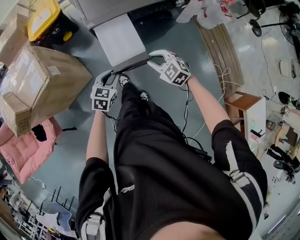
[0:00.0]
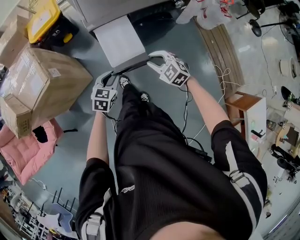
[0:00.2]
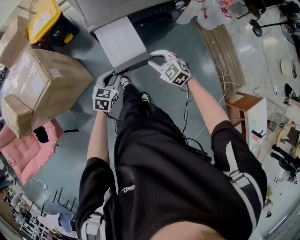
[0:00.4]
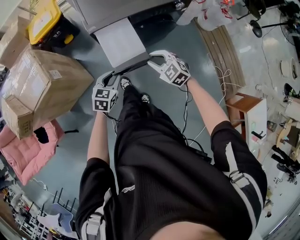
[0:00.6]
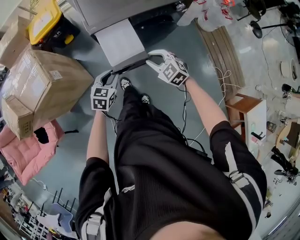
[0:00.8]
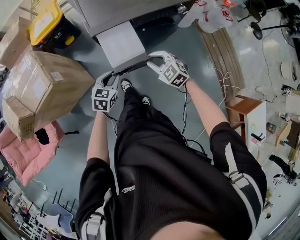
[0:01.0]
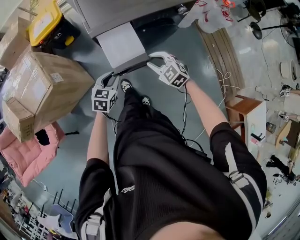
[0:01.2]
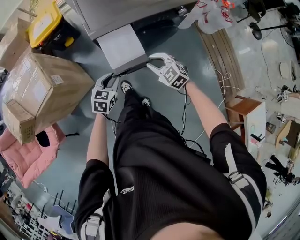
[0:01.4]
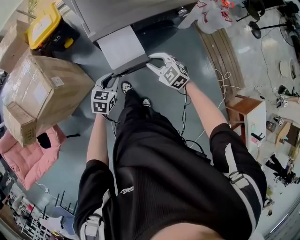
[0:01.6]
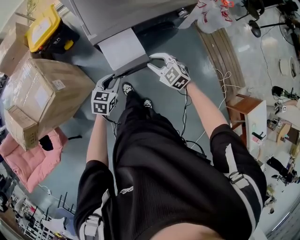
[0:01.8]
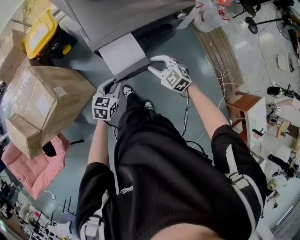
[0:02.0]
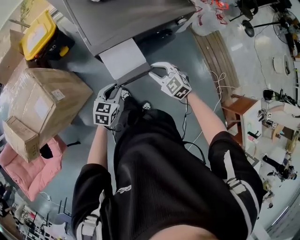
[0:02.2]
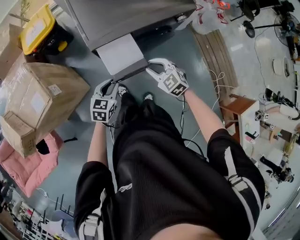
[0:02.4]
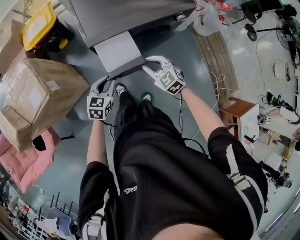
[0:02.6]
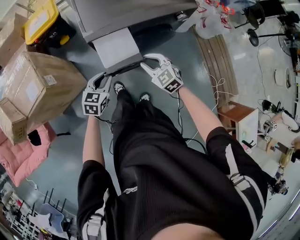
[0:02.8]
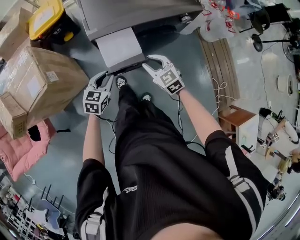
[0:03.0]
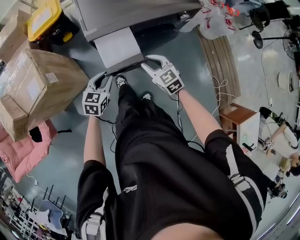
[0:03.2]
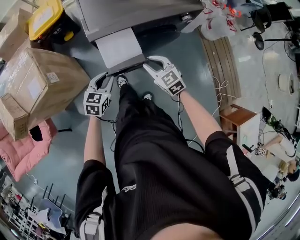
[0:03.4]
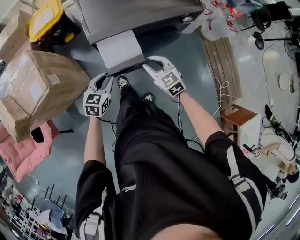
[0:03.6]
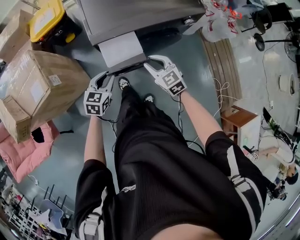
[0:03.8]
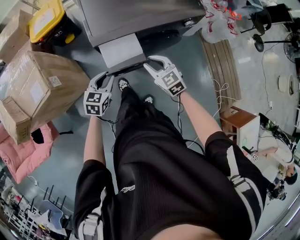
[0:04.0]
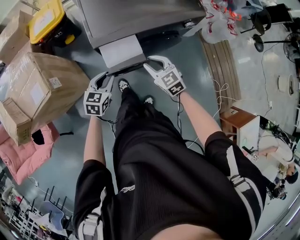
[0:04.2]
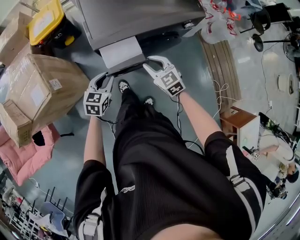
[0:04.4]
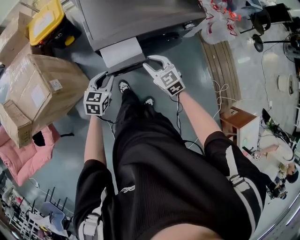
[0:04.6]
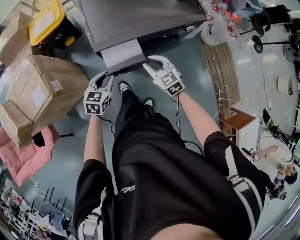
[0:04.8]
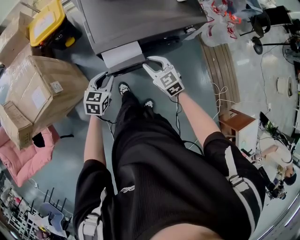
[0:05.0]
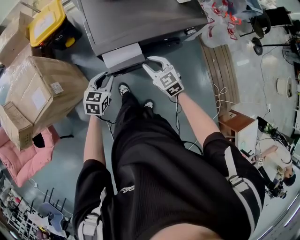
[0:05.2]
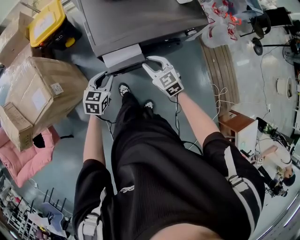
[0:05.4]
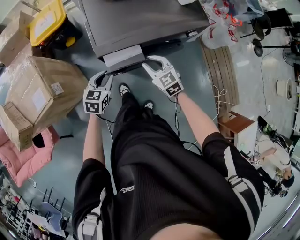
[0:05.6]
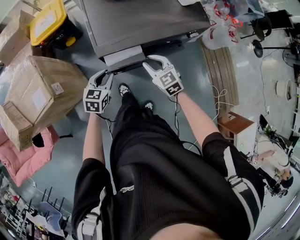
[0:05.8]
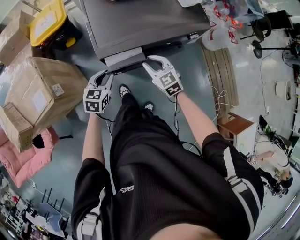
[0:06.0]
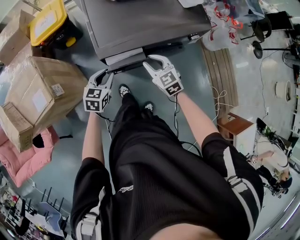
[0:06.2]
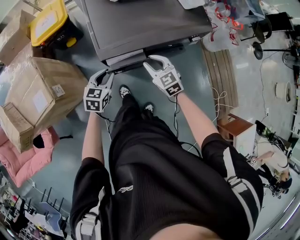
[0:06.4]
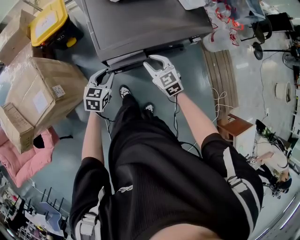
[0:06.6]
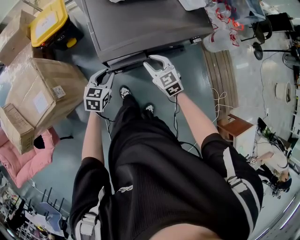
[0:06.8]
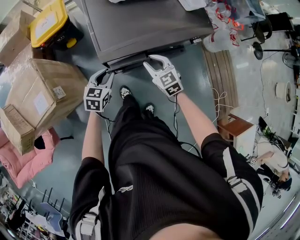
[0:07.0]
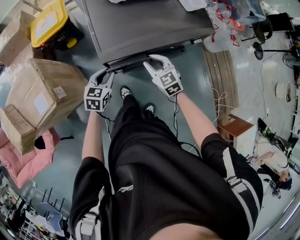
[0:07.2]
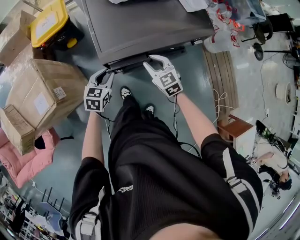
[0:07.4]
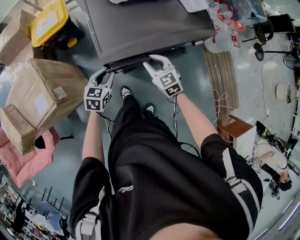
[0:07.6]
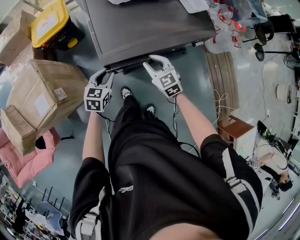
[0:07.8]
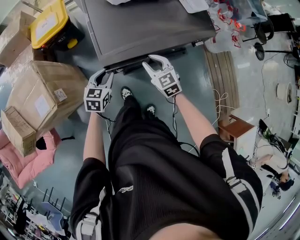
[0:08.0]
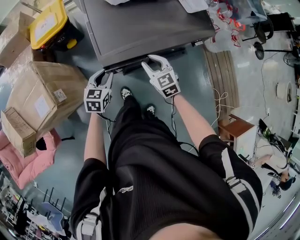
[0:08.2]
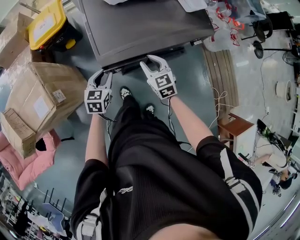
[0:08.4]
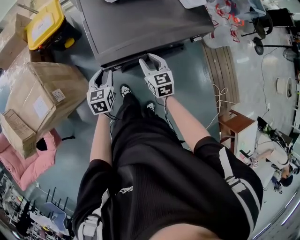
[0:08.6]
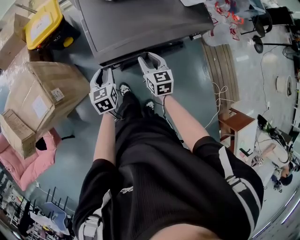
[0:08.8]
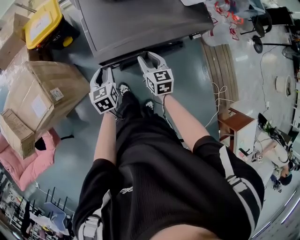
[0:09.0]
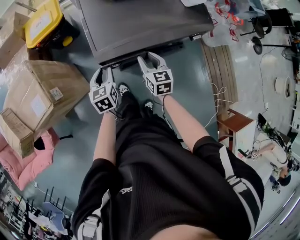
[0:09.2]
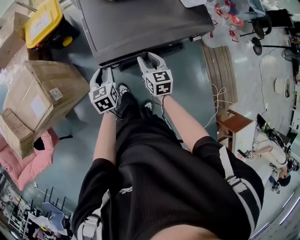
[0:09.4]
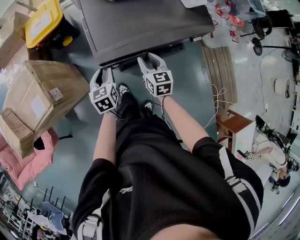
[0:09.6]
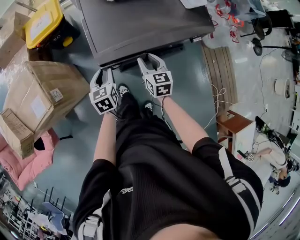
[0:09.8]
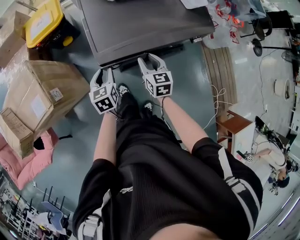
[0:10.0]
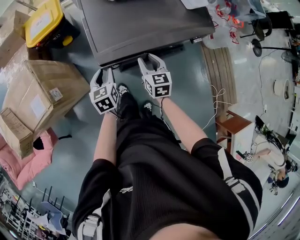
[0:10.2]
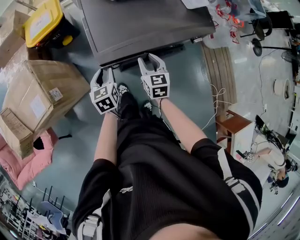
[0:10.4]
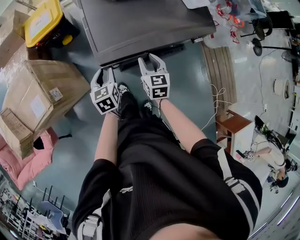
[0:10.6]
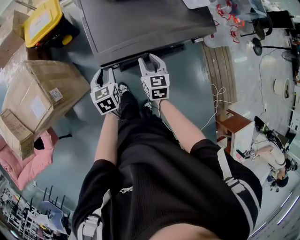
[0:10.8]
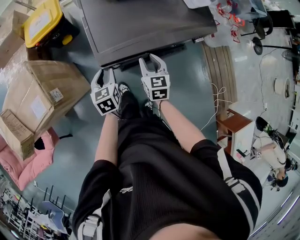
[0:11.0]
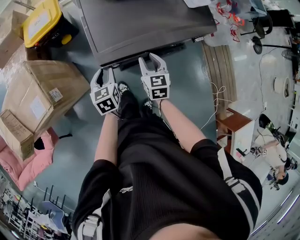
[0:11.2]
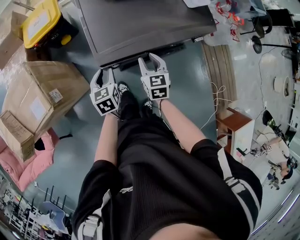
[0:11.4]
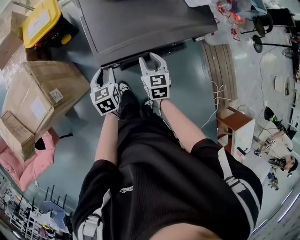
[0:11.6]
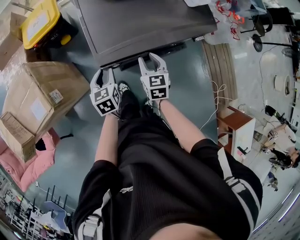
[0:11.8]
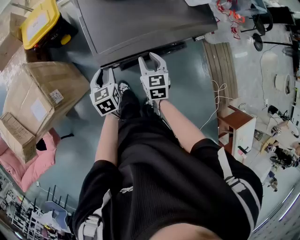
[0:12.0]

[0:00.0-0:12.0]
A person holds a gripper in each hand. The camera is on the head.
0:00.0 to 0:01.6: Both grippers move forward, about 5 cm.
0:01.6 to 0:03.0: The grippers make only small movements.
0:03.0 to 0:04.4: The grippers move only a little.
0:04.4 to 0:06.0: Both grippers move forward, about 5 cm.
0:06.0 to 0:07.6: The grippers make only small movements.
0:07.6 to 0:09.0: The left gripper swivels roughly 30 degrees. Meanwhile the right gripper turns by about 30 degrees.
0:09.0 to 0:12.0: The grippers move only a little.

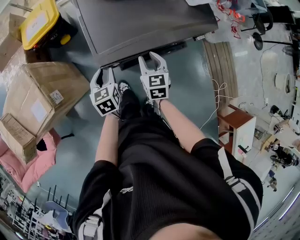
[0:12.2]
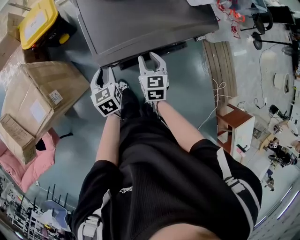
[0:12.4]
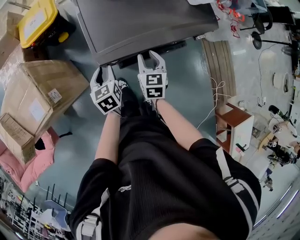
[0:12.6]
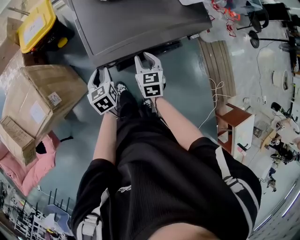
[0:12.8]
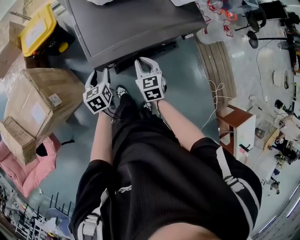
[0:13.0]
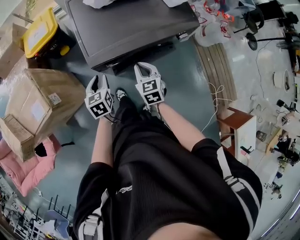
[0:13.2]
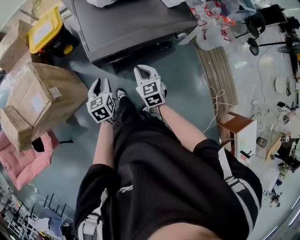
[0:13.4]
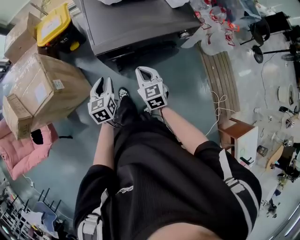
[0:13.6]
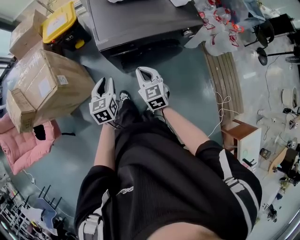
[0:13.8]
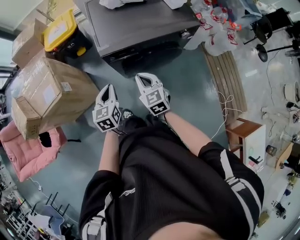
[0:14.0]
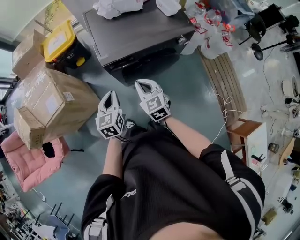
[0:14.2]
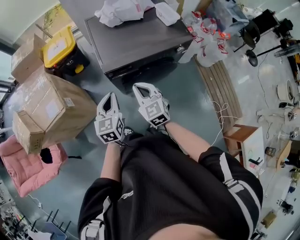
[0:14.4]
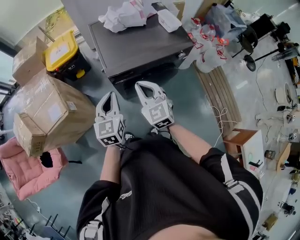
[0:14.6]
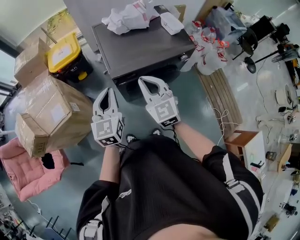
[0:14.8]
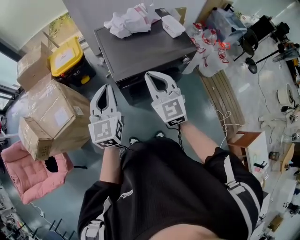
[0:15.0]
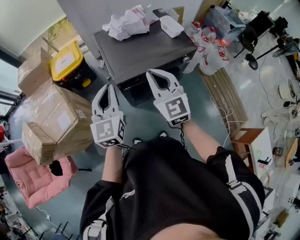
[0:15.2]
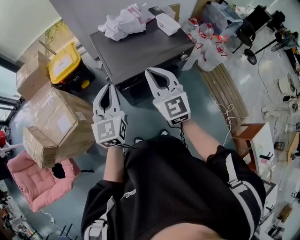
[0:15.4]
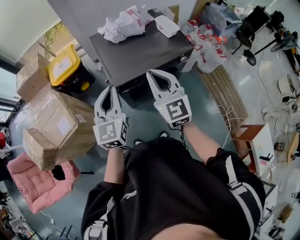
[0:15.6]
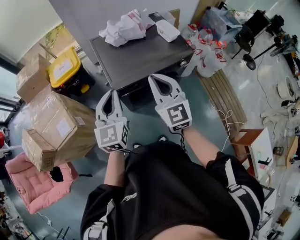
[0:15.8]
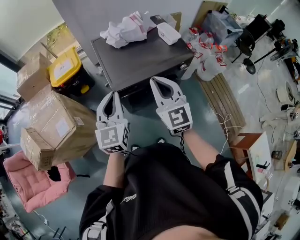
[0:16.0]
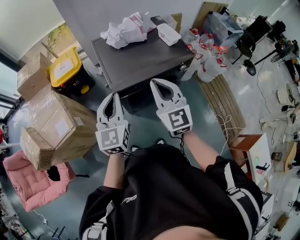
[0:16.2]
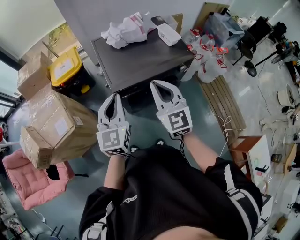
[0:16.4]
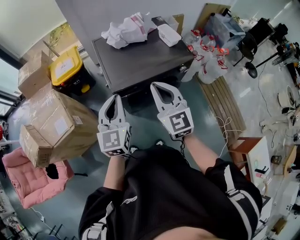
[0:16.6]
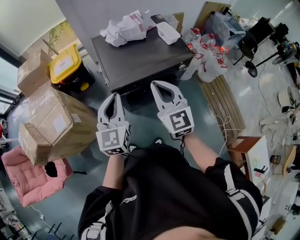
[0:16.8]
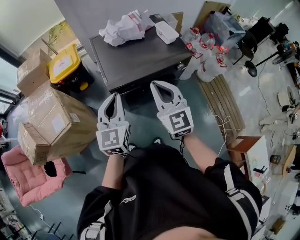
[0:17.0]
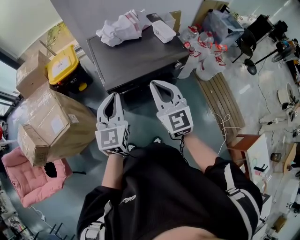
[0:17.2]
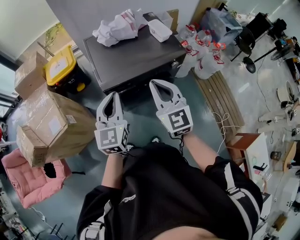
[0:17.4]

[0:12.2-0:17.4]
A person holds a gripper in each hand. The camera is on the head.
0:12.2 to 0:14.0: Both grippers travel together backward and upward, about 20 cm. The right gripper changes its angle by roughly 20 degrees, and closes its fingers. Meanwhile the left gripper closes its fingers.
0:14.0 to 0:15.6: The grippers both shift upward by about 25 cm. The right gripper rotates about 30 degrees; the left gripper rotates about 30 degrees.
0:15.6 to 0:17.4: Both grippers move to the right, about 5 cm.

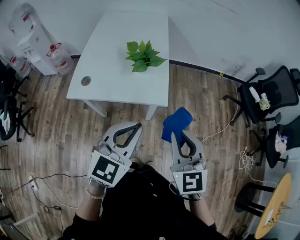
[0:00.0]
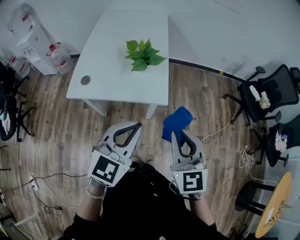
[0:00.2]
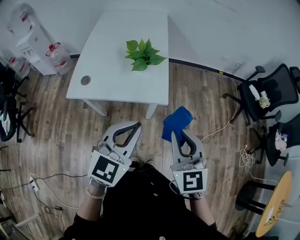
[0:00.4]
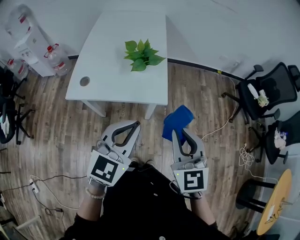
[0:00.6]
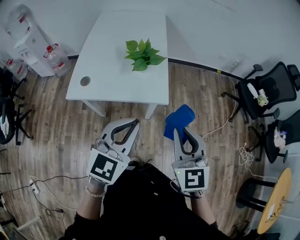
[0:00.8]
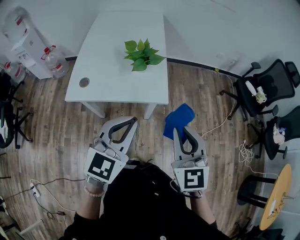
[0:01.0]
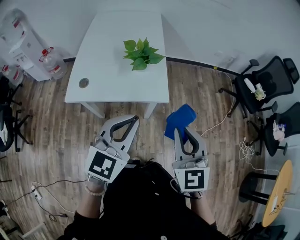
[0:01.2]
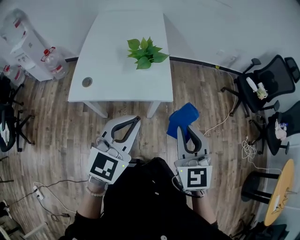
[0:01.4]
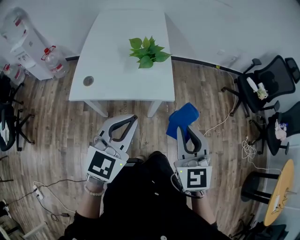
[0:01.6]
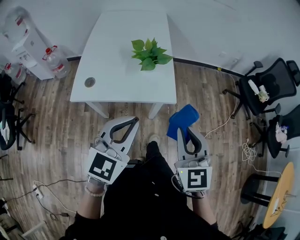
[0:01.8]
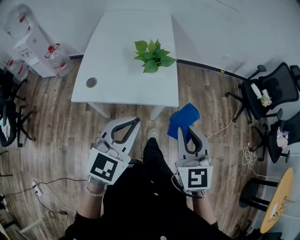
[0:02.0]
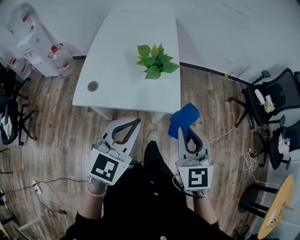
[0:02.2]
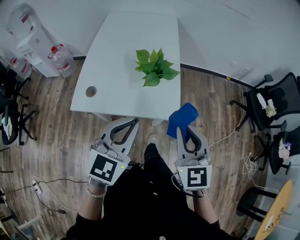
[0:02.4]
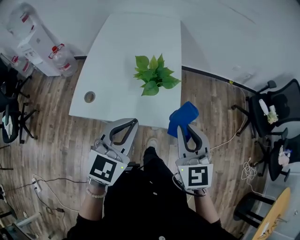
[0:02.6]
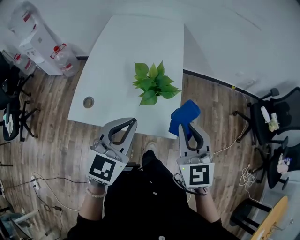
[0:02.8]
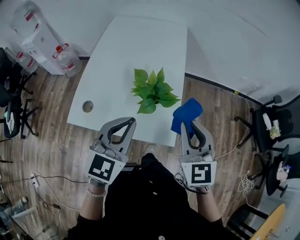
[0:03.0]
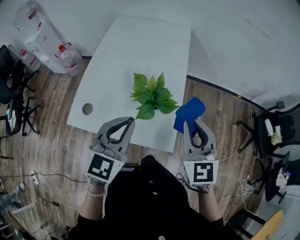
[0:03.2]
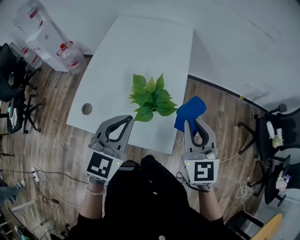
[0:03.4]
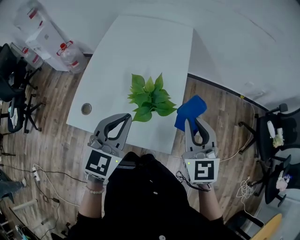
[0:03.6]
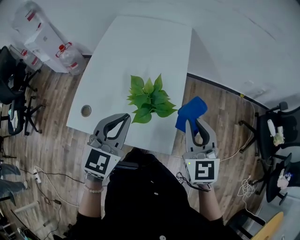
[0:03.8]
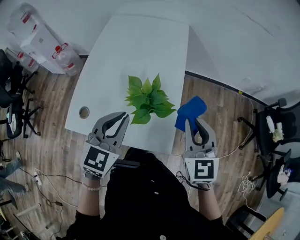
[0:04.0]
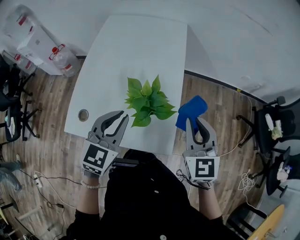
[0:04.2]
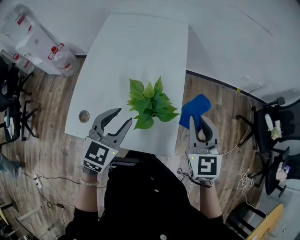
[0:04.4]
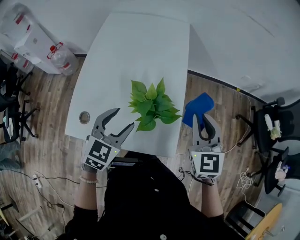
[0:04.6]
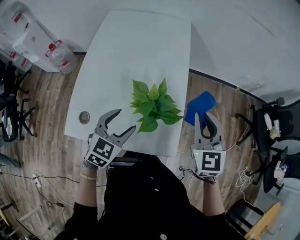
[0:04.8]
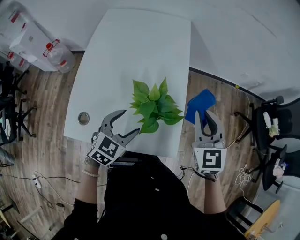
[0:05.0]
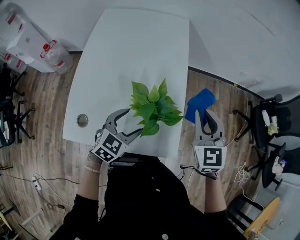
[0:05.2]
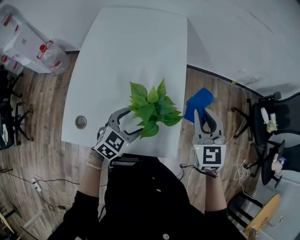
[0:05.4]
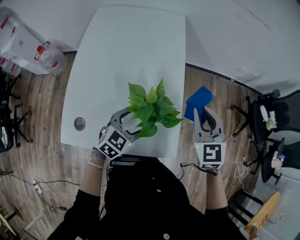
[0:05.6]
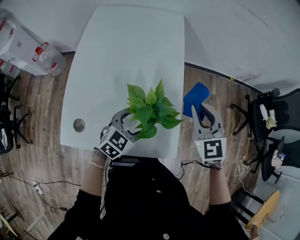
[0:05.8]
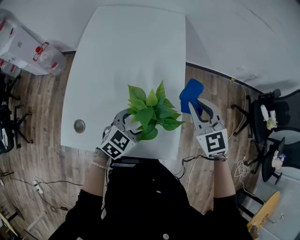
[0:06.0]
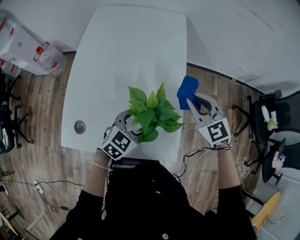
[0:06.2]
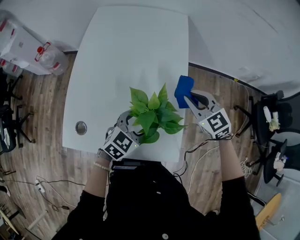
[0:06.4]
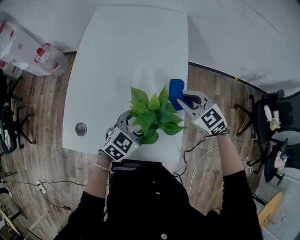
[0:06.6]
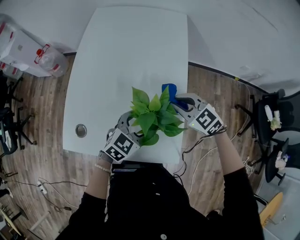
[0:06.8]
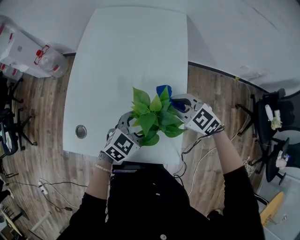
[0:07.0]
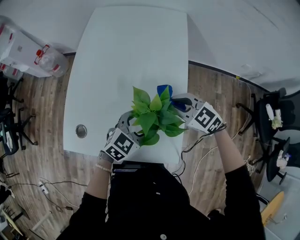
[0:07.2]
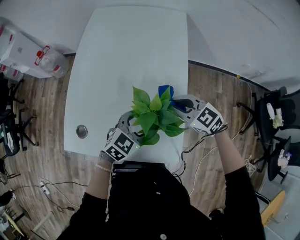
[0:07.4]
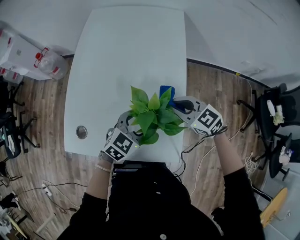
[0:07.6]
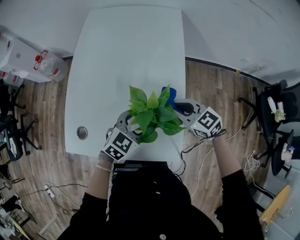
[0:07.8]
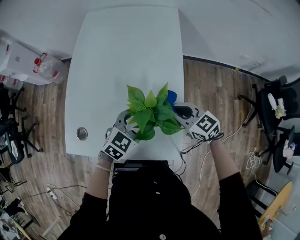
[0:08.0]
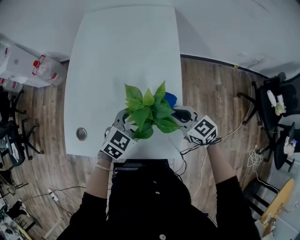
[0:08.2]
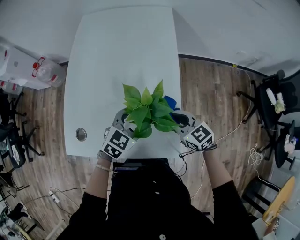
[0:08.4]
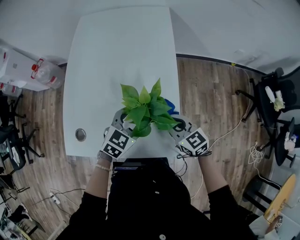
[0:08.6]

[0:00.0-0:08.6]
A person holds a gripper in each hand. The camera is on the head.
0:00.0 to 0:01.4: The left gripper ends up roughly 5 cm from where it was.
0:01.4 to 0:02.8: Both grippers travel together forward, some 20 cm.
0:02.8 to 0:04.4: The grippers both shift forward by about 15 cm. The left gripper opens up.
0:04.4 to 0:05.8: The right gripper heads forward, covering some 5 cm. The left gripper shifts about 15 cm downward, rotates roughly 20 degrees, and opens.
0:05.8 to 0:07.2: The right gripper travels downward and to the left by some 15 cm, and rotates about 40 degrees.
0:07.2 to 0:08.6: The right gripper shifts roughly 10 cm backward, and changes its angle by approximately 30 degrees.
